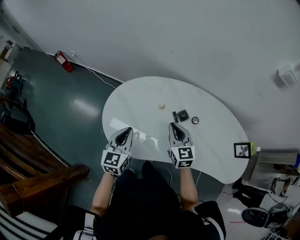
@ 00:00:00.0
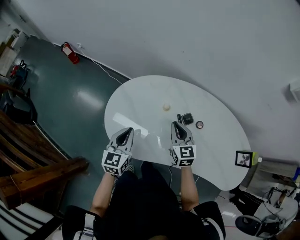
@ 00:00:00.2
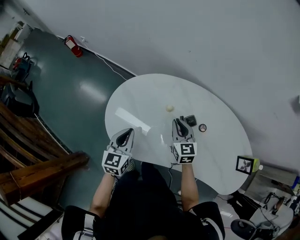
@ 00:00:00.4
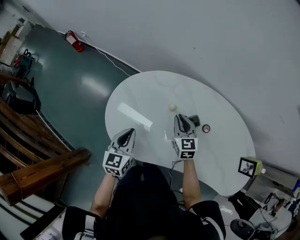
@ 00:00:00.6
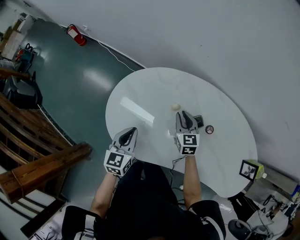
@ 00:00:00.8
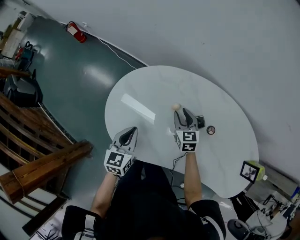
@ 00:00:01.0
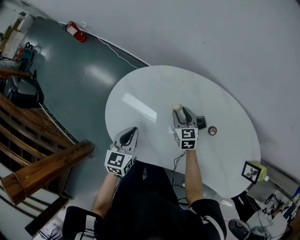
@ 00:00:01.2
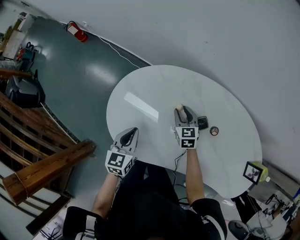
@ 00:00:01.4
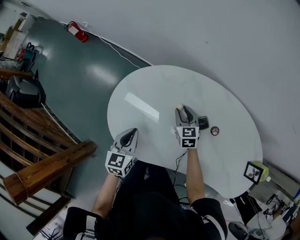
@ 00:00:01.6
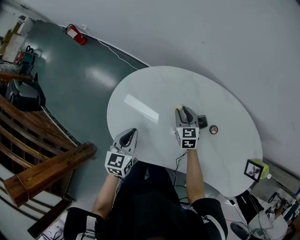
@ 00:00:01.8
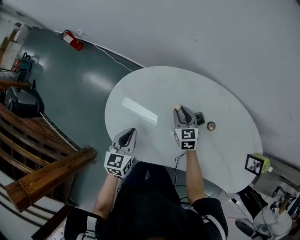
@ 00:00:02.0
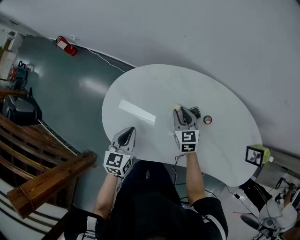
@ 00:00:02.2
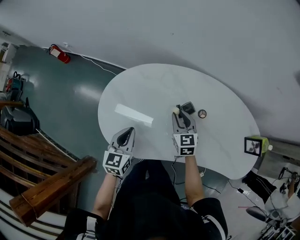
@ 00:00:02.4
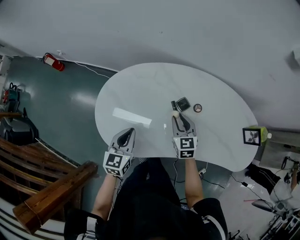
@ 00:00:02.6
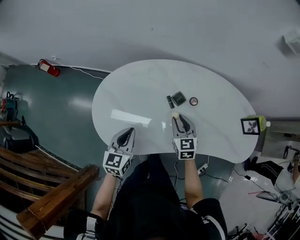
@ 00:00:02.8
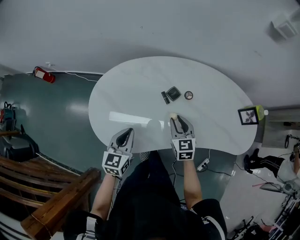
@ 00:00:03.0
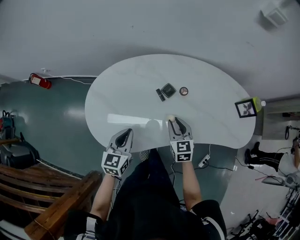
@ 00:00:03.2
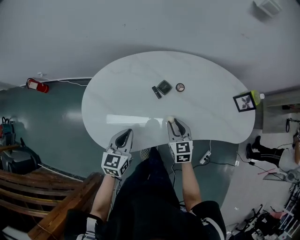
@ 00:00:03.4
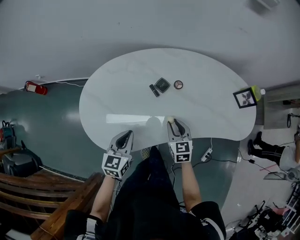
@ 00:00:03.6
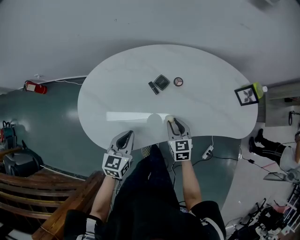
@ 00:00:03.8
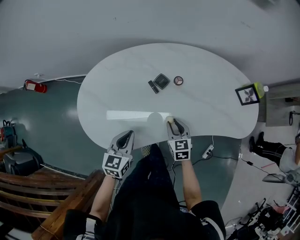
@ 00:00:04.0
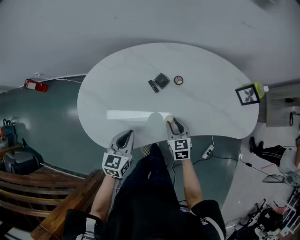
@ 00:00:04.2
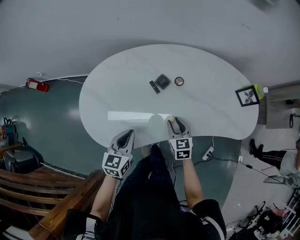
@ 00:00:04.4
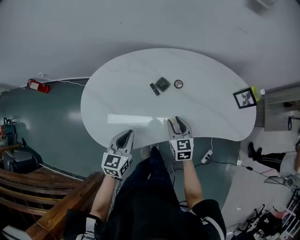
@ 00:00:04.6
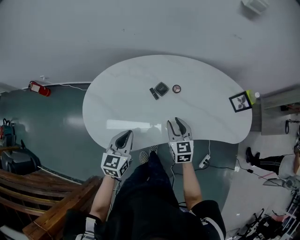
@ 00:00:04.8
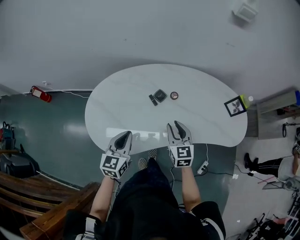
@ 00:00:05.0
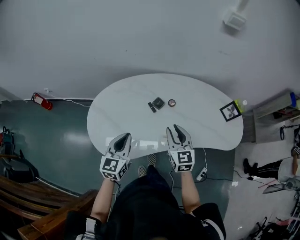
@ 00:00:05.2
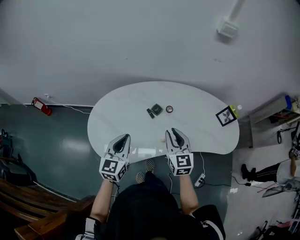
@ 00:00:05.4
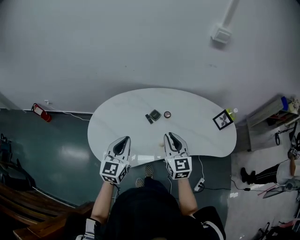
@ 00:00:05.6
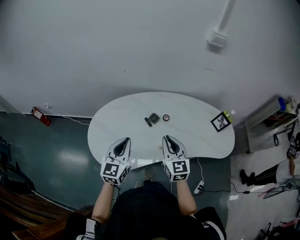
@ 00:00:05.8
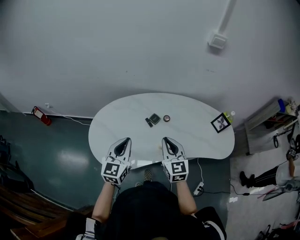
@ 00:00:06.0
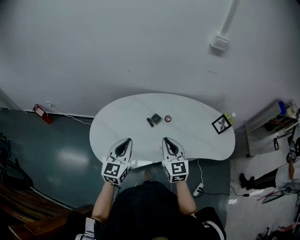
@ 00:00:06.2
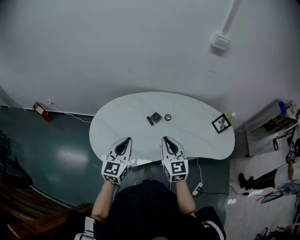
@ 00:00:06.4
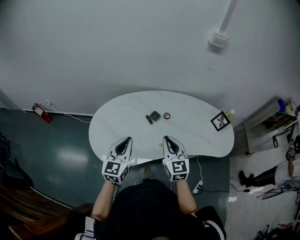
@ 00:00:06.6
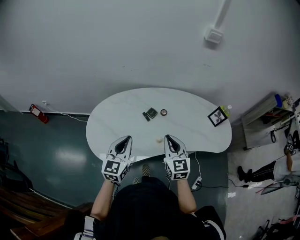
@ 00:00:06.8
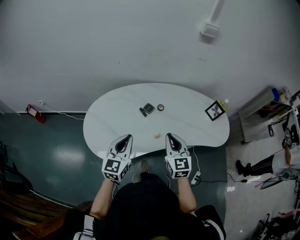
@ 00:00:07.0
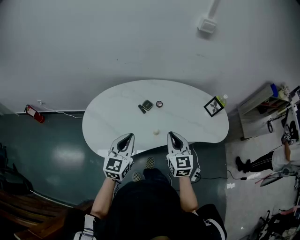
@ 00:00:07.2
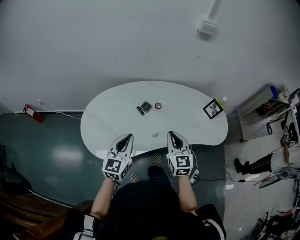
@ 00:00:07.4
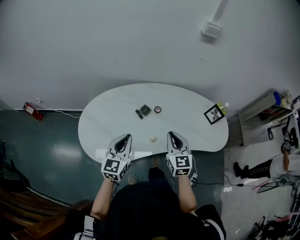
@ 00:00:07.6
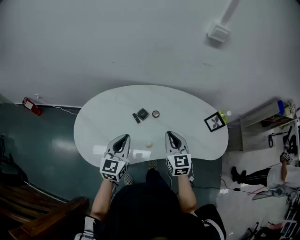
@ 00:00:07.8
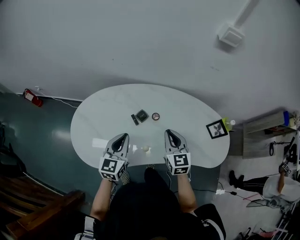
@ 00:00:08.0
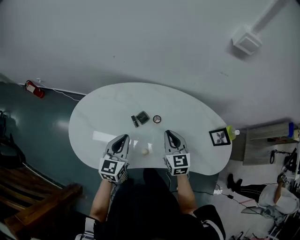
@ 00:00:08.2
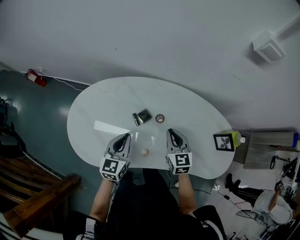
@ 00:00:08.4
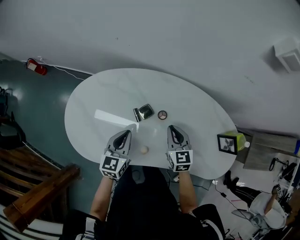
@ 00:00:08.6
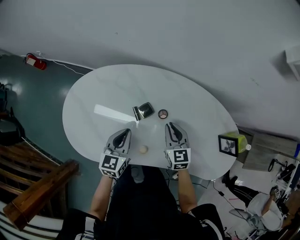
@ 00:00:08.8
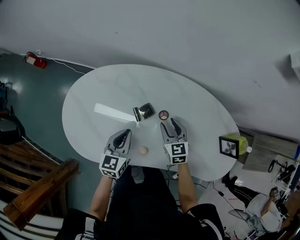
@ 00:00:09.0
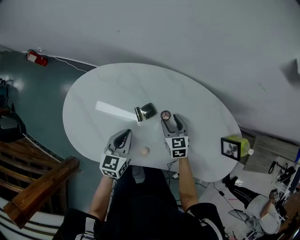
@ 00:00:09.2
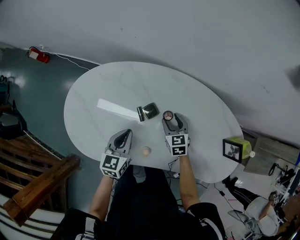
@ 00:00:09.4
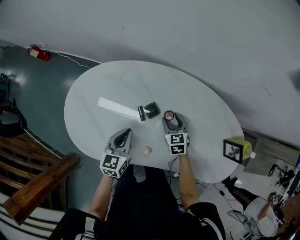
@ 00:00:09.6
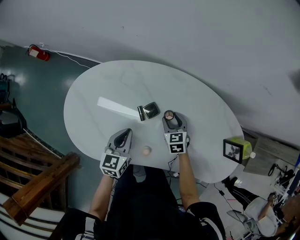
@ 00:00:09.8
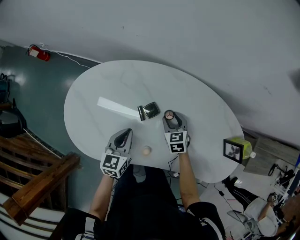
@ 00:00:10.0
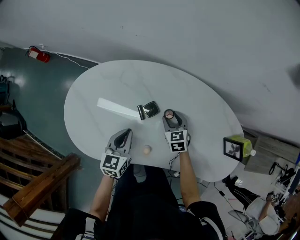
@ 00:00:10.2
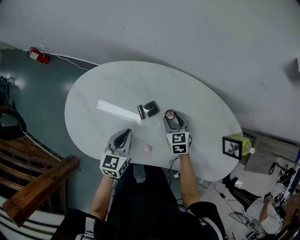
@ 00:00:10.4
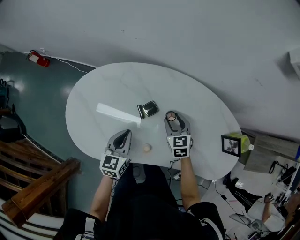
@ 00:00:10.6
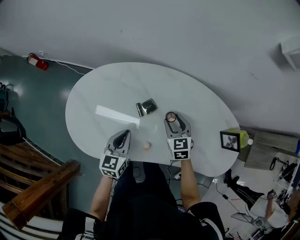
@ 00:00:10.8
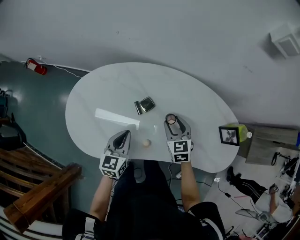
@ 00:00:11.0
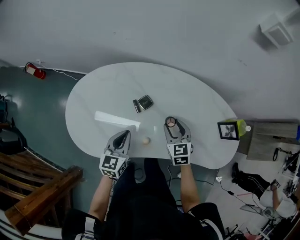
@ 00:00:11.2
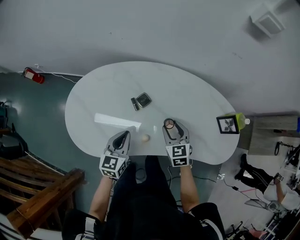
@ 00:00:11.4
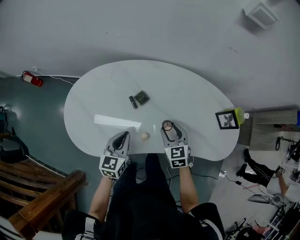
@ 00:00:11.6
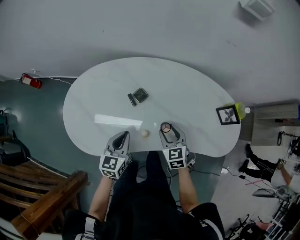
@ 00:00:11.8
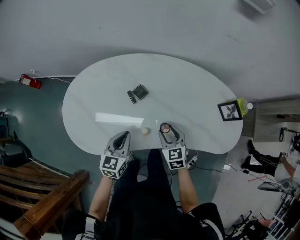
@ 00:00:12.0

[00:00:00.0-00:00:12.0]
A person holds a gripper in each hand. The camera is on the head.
00:00:00.0 to 00:00:01.6: The left gripper heads downward, covering approximately 10 cm; the right gripper moves downward and forward, roughly 25 cm, and opens.
00:00:01.6 to 00:00:03.0: The left gripper shifts roughly 10 cm to the right and backward, and swivels approximately 20 degrees, while the right gripper shifts roughly 25 cm backward, to the right and upward, and rotates some 20 degrees.
00:00:03.0 to 00:00:04.4: The right gripper goes approximately 10 cm downward and backward; the left gripper travels to the right by some 5 cm.
00:00:04.4 to 00:00:06.0: The grippers both shift upward by some 25 cm. The right gripper turns by some 30 degrees. Meanwhile the left gripper swivels roughly 20 degrees.
00:00:06.0 to 00:00:07.6: The two grippers go approximately 5 cm to the right.
00:00:07.6 to 00:00:09.0: Both grippers travel together forward and downward, some 30 cm. The right gripper rotates some 30 degrees, and opens. Meanwhile the left gripper turns by roughly 30 degrees.
00:00:10.4 to 00:00:12.0: The right gripper moves backward, about 20 cm. The left gripper heads backward, covering about 10 cm.

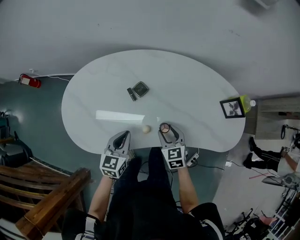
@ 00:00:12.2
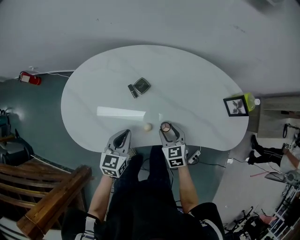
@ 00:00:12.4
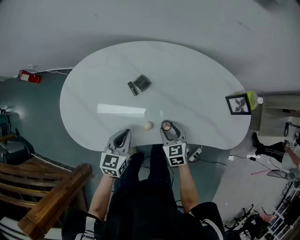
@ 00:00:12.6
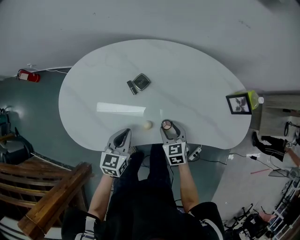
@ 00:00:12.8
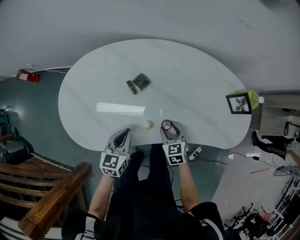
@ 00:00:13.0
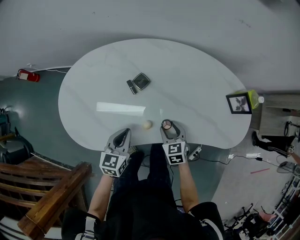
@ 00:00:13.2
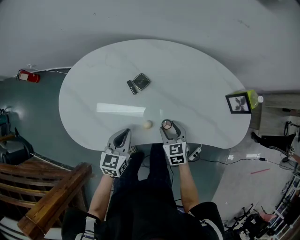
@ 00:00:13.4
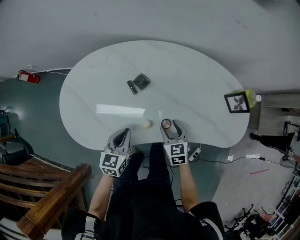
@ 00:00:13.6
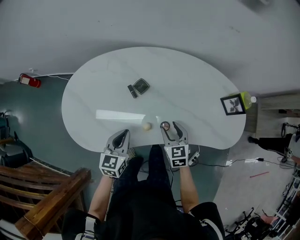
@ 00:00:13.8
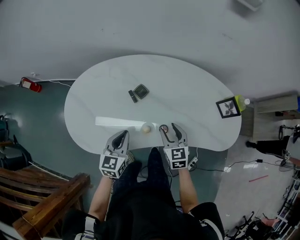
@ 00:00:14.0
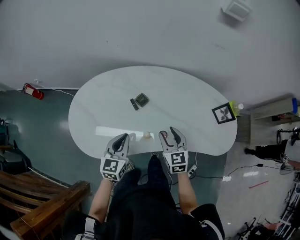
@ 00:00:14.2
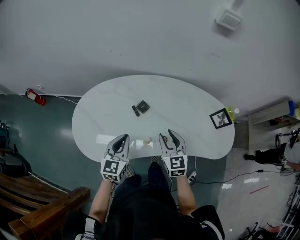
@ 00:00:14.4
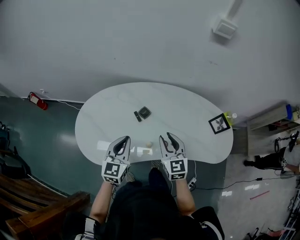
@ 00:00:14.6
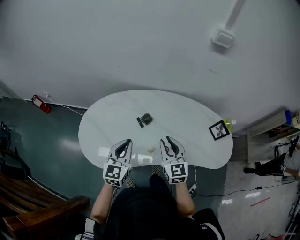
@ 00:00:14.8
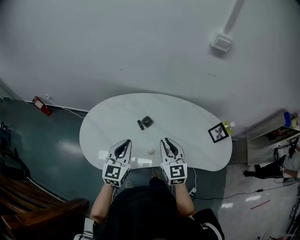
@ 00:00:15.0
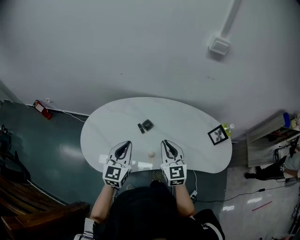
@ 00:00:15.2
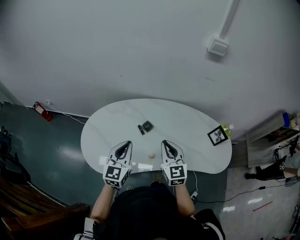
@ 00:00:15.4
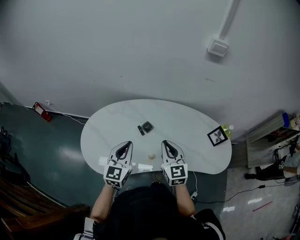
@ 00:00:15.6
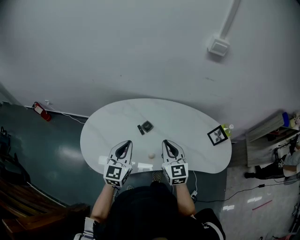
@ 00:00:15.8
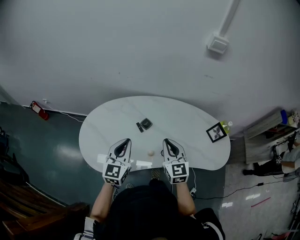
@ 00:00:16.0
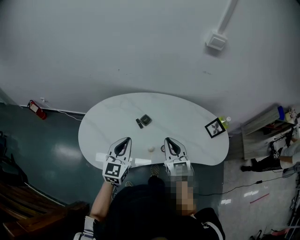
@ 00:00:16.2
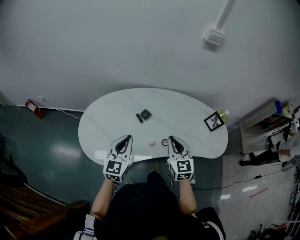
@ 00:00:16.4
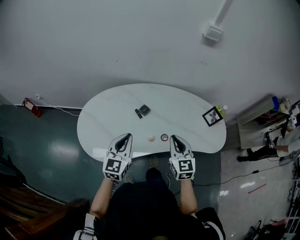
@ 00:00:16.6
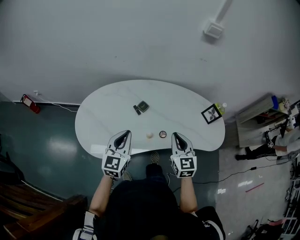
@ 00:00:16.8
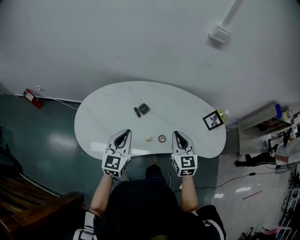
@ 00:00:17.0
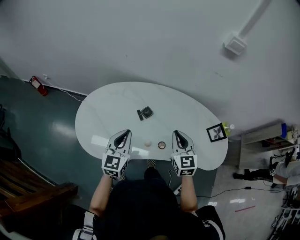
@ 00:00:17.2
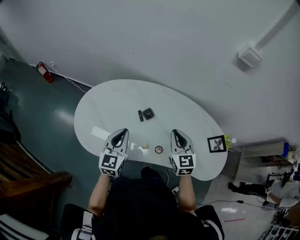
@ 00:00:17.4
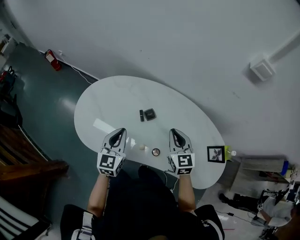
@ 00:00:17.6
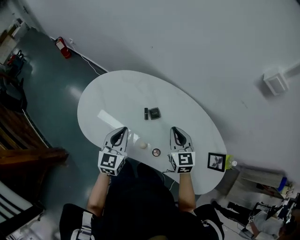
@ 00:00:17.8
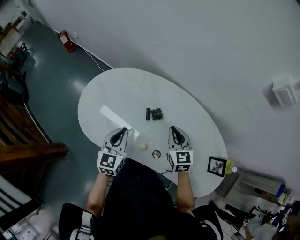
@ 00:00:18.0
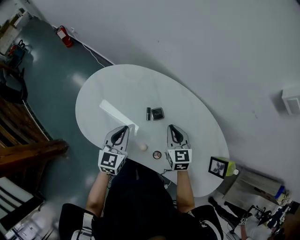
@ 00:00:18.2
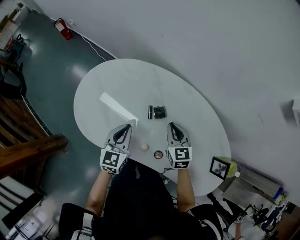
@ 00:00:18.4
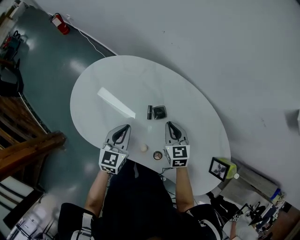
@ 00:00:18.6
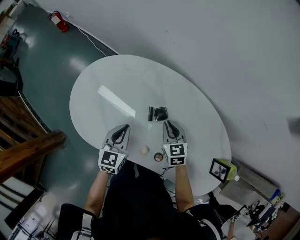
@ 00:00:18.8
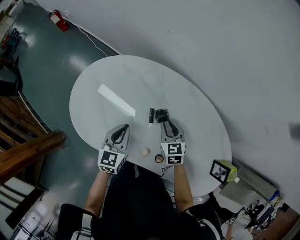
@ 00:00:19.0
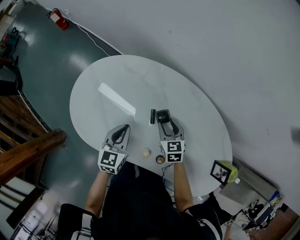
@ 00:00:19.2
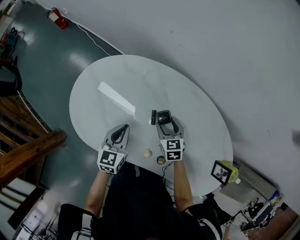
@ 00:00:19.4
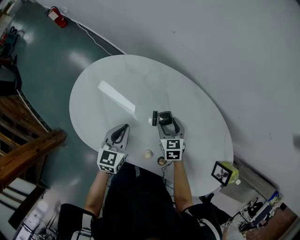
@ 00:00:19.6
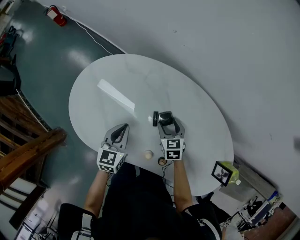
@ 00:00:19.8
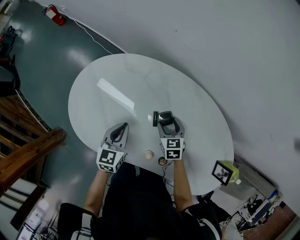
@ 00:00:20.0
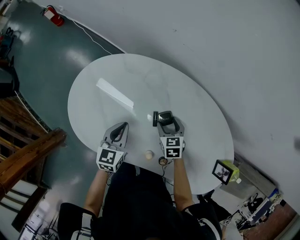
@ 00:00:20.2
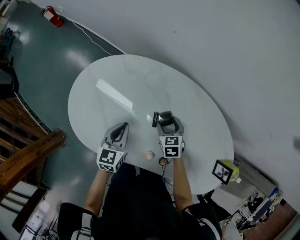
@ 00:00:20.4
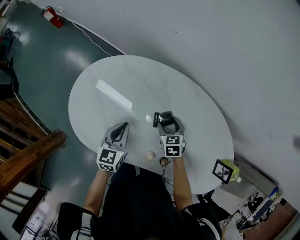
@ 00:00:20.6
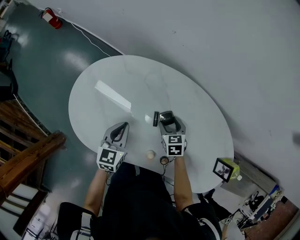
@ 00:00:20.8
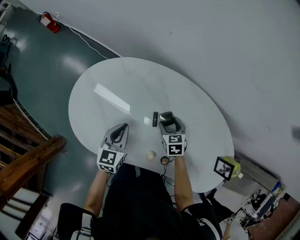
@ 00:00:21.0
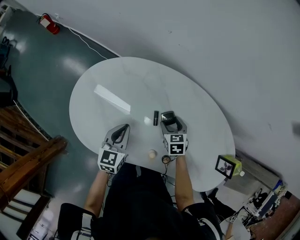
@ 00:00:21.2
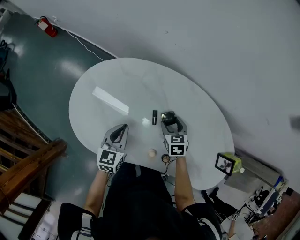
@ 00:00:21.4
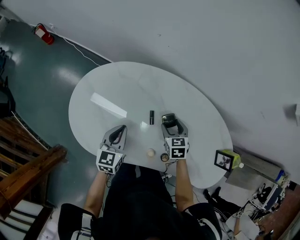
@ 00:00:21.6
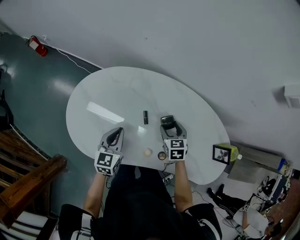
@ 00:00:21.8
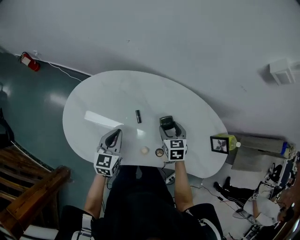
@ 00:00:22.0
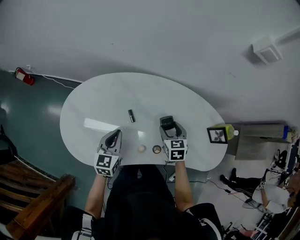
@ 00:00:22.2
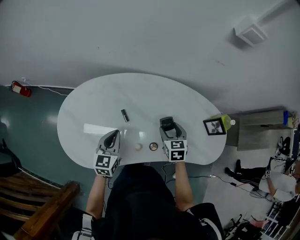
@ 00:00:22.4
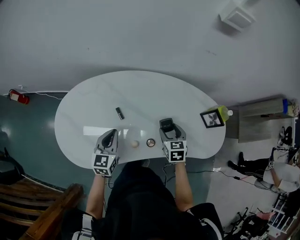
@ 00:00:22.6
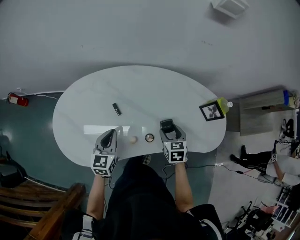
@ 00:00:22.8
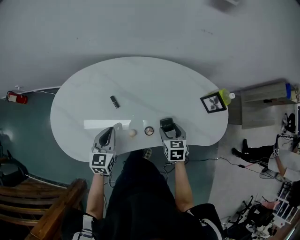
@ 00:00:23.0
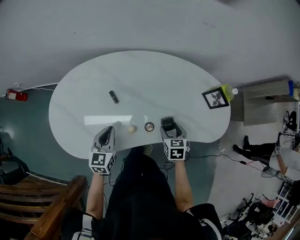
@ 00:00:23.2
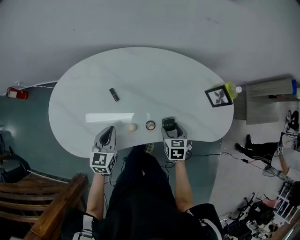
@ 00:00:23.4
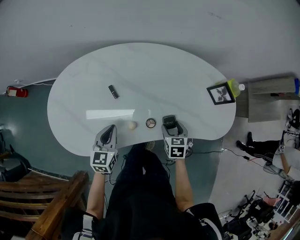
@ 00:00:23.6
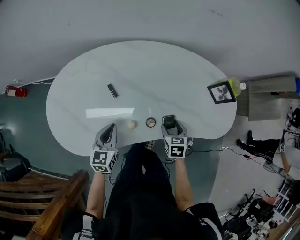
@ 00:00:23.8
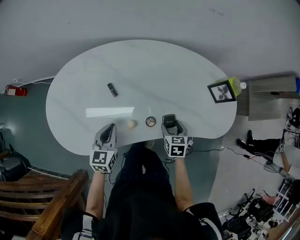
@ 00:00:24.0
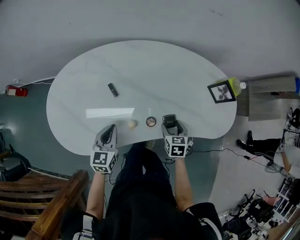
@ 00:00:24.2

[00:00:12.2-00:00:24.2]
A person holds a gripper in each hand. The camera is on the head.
00:00:12.2 to 00:00:13.8: The grippers move only a little.
00:00:13.8 to 00:00:15.2: The grippers both shift upward by approximately 20 cm. The right gripper swivels roughly 30 degrees, and closes its fingers; the left gripper swivels some 20 degrees.
00:00:15.2 to 00:00:16.6: The two grippers go about 5 cm backward.
00:00:16.6 to 00:00:18.2: The right gripper changes place by approximately 25 cm, and rotates approximately 40 degrees; the left gripper shifts by some 15 cm, and rotates about 40 degrees.
00:00:18.2 to 00:00:19.8: The grippers both shift downward and forward by some 15 cm. The right gripper swivels approximately 20 degrees, and opens up.
00:00:19.8 to 00:00:21.2: There are only small adjustments of the grippers.
00:00:21.2 to 00:00:22.6: The right gripper changes place by some 25 cm, and swivels roughly 30 degrees. The left gripper ends up about 15 cm from where it was, and swivels some 20 degrees.
00:00:22.6 to 00:00:24.2: The grippers both shift downward and backward by some 15 cm.
